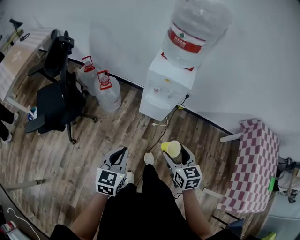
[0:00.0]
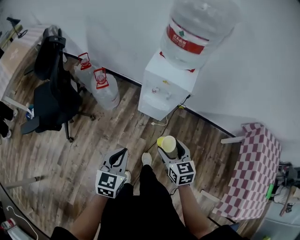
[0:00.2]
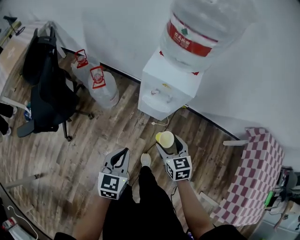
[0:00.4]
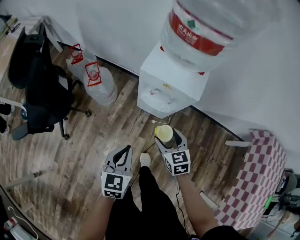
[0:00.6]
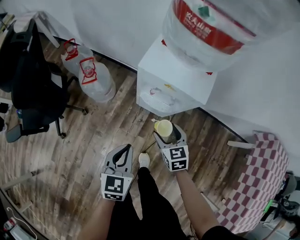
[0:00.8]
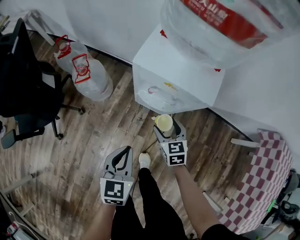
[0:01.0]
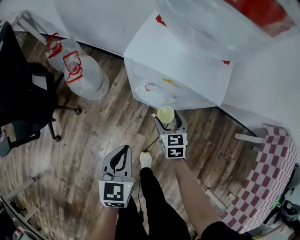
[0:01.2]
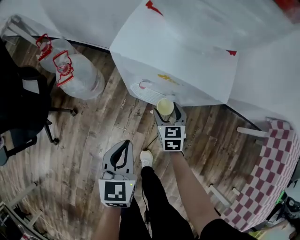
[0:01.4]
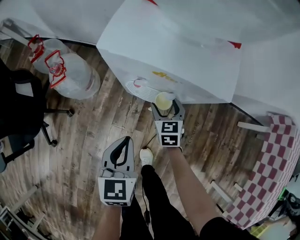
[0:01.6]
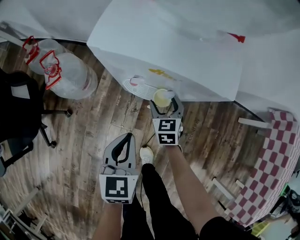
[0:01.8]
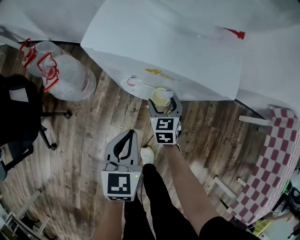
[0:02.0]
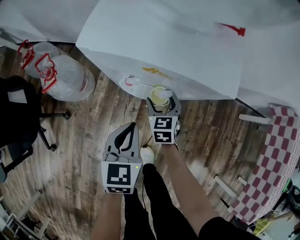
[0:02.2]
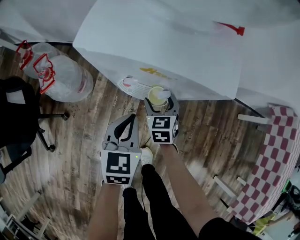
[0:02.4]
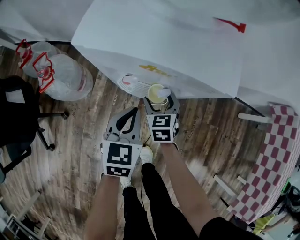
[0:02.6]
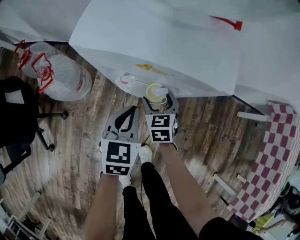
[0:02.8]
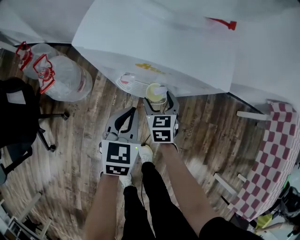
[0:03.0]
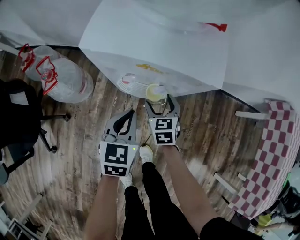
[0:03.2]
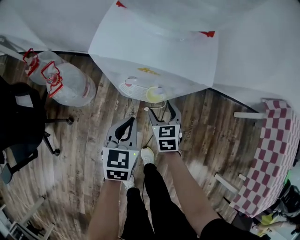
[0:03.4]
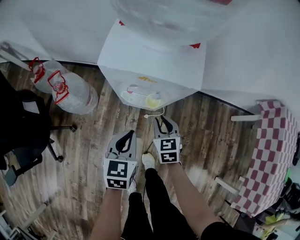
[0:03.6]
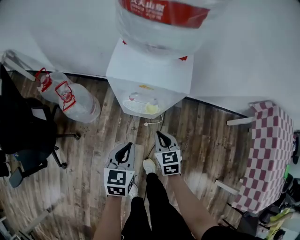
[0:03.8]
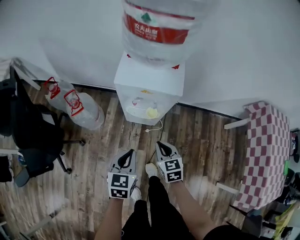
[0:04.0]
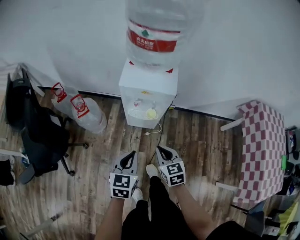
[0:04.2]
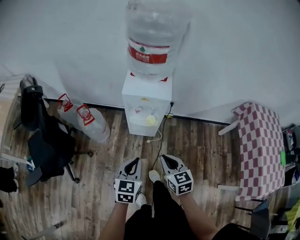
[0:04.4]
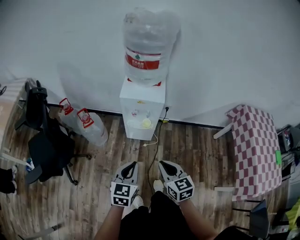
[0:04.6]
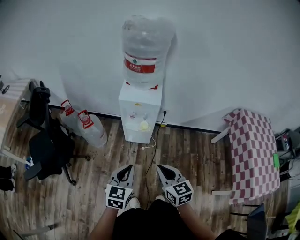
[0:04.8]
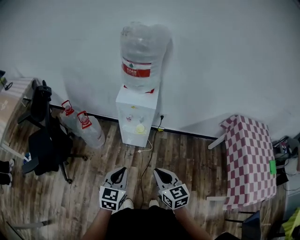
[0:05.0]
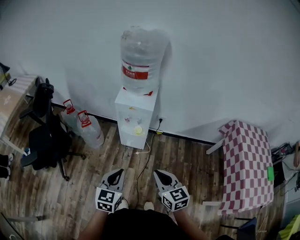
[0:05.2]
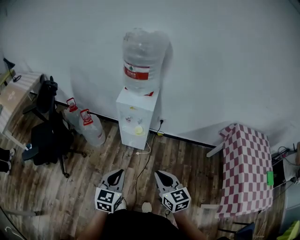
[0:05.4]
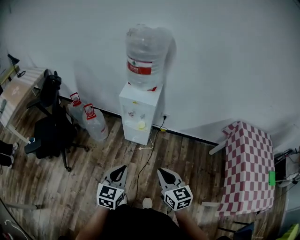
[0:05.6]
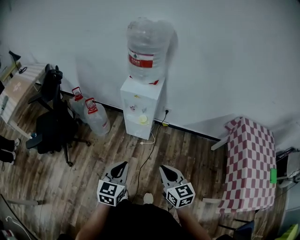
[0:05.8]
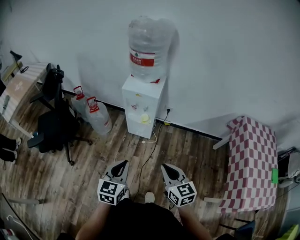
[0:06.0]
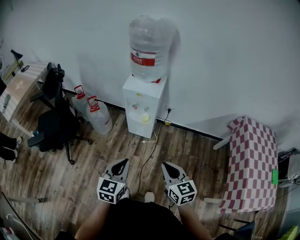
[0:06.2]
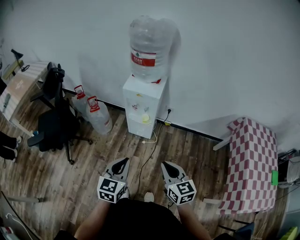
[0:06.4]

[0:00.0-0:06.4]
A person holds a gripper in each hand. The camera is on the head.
0:00.0 to 0:01.6: The left gripper heads forward, downward and to the right, covering approximately 40 cm; the right gripper moves downward and forward, roughly 50 cm.
0:01.6 to 0:03.2: The left gripper shifts about 5 cm forward.
0:03.2 to 0:04.8: The right gripper goes about 60 cm upward and backward, changes its angle by roughly 20 degrees, and closes its fingers. Meanwhile the left gripper travels backward and upward by about 50 cm.
0:04.8 to 0:06.4: The left gripper is displaced backward and to the right by about 10 cm. The right gripper travels to the right and backward by about 10 cm.

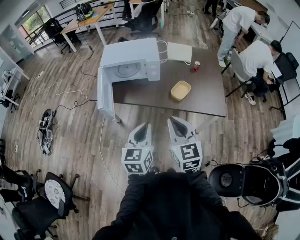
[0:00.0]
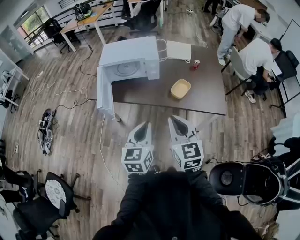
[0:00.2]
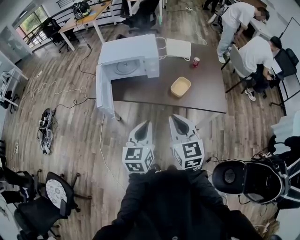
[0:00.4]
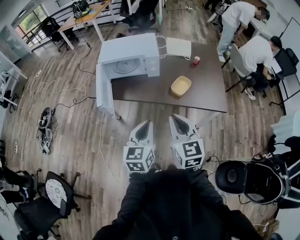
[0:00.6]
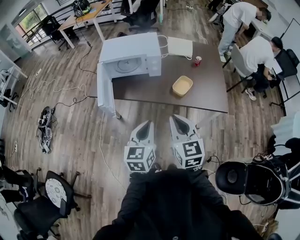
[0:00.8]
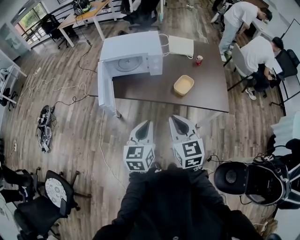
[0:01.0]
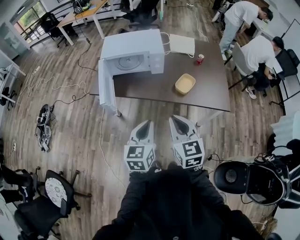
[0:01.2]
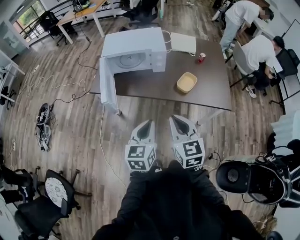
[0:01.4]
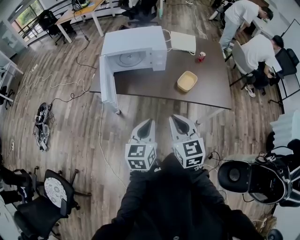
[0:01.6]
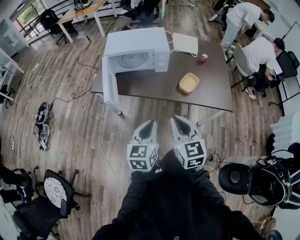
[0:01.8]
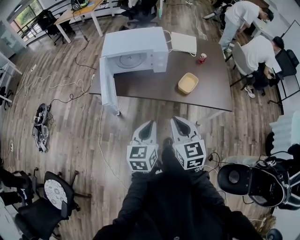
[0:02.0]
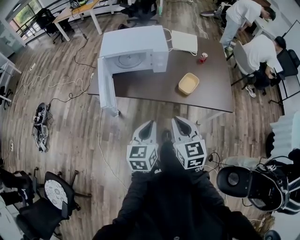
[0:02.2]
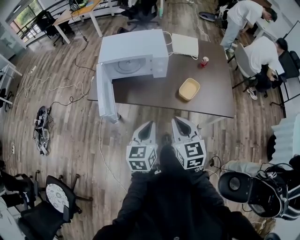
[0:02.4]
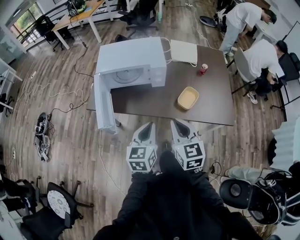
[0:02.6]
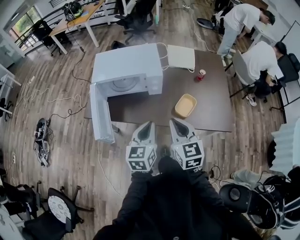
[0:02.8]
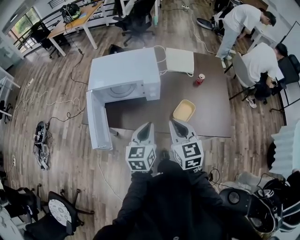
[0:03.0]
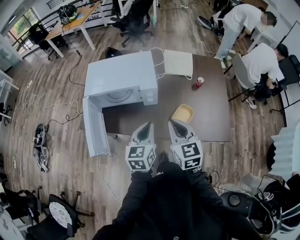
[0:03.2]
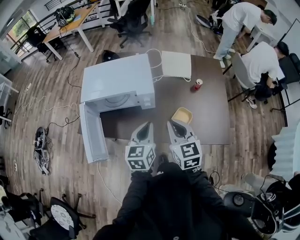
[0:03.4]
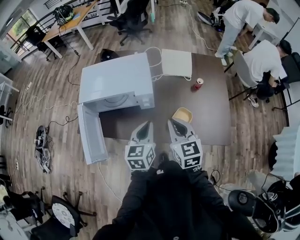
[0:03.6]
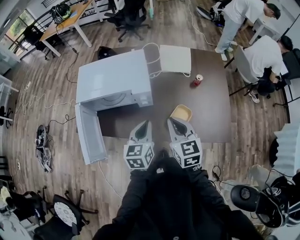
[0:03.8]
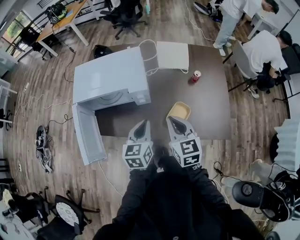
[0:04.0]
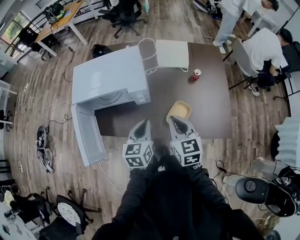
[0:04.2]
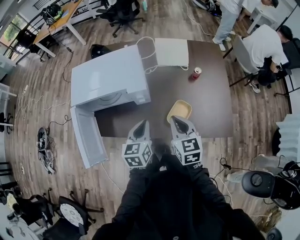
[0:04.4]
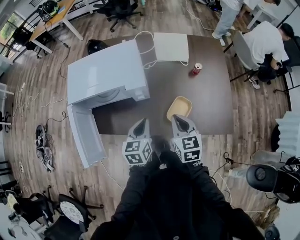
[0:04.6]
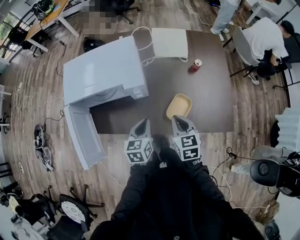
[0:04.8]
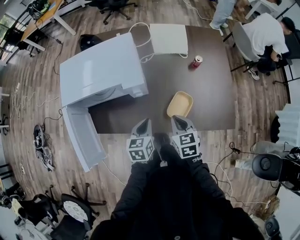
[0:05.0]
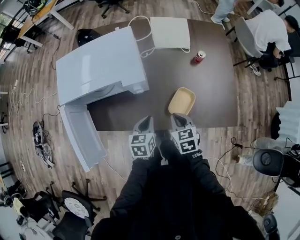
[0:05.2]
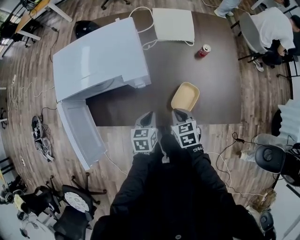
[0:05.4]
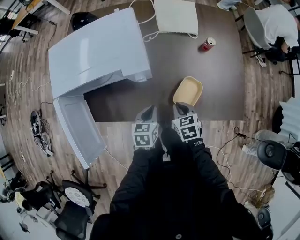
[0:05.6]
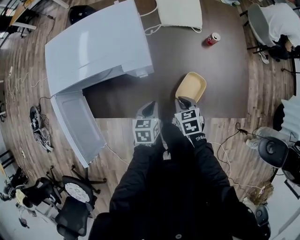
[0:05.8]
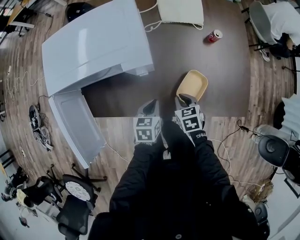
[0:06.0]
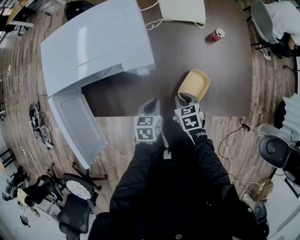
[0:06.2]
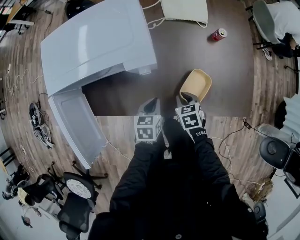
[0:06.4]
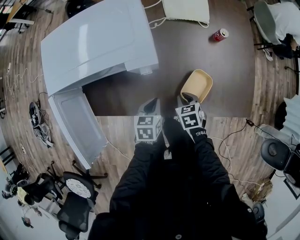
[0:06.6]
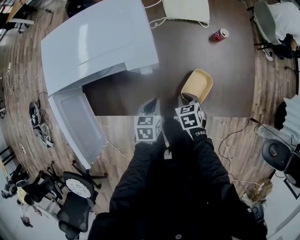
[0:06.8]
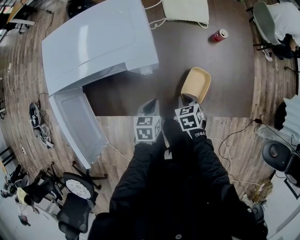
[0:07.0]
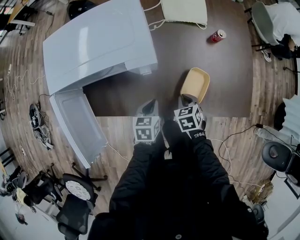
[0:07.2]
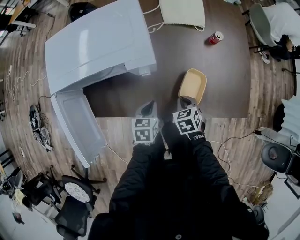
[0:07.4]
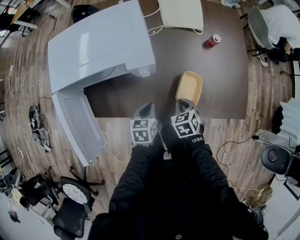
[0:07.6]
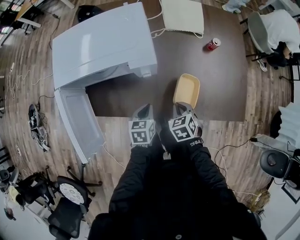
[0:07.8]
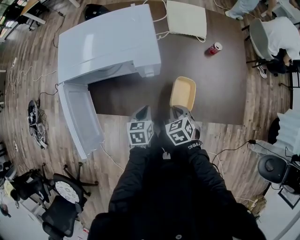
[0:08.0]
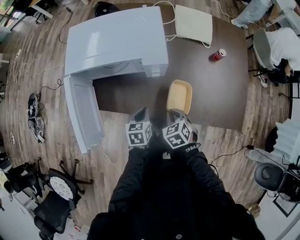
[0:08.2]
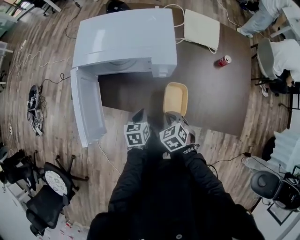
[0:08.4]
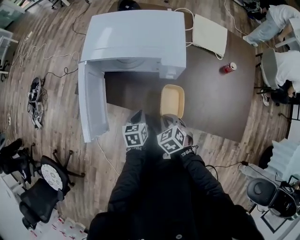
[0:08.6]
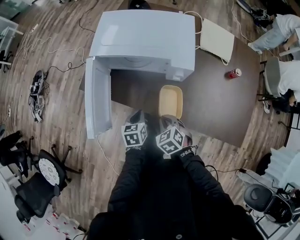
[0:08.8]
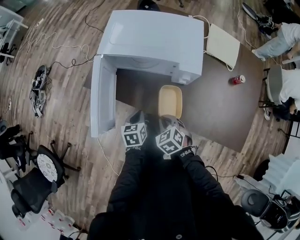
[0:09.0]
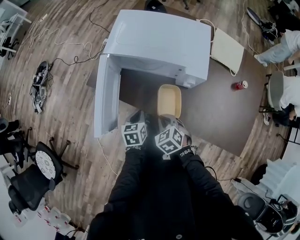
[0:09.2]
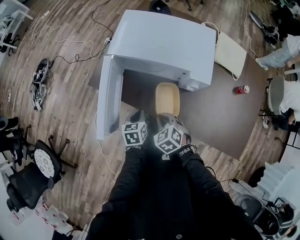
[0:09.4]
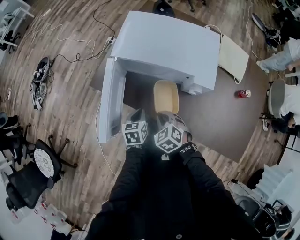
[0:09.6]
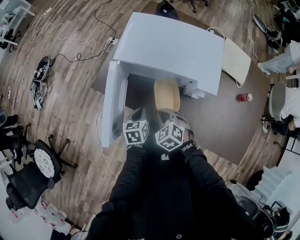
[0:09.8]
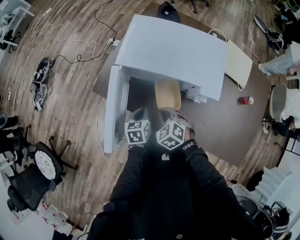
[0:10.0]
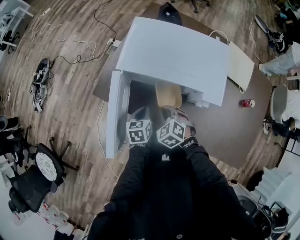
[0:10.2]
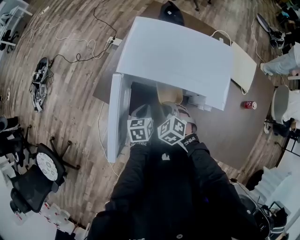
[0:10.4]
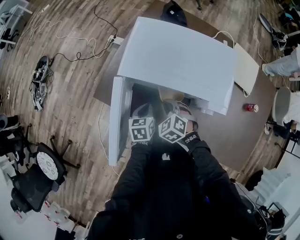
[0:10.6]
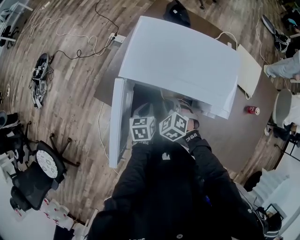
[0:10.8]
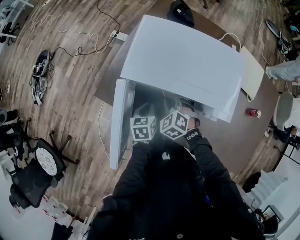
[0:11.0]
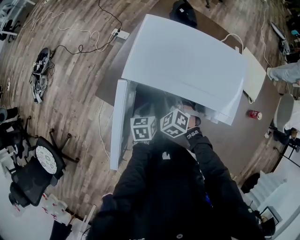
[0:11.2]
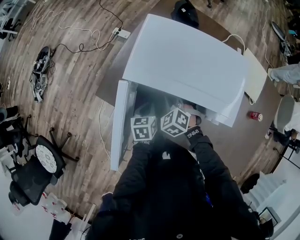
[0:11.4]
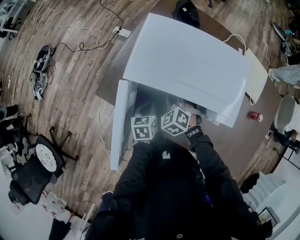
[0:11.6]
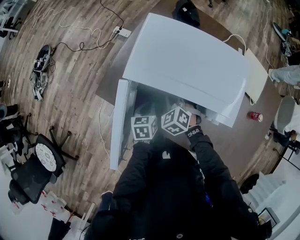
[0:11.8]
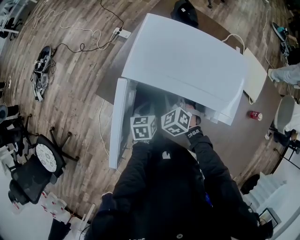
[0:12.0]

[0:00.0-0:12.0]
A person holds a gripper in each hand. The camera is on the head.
0:00.0 to 0:01.6: The right gripper travels to the left by roughly 5 cm. Meanwhile the left gripper changes place by some 5 cm.
0:01.6 to 0:03.0: Both grippers travel together forward, approximately 25 cm.
0:03.0 to 0:04.4: The right gripper goes roughly 15 cm forward, to the right and downward. Meanwhile the left gripper shifts about 10 cm forward and downward.
0:04.4 to 0:06.0: Both grippers travel together downward, some 20 cm. The right gripper angles its fingers downward, by some 30 degrees, while the left gripper swivels approximately 20 degrees.
0:06.0 to 0:07.6: The grippers make only small movements.
0:07.6 to 0:09.0: The left gripper shifts by about 20 cm, and changes its angle by roughly 30 degrees, while the right gripper moves some 20 cm, and turns by about 40 degrees.
0:09.0 to 0:10.4: Both grippers move forward, approximately 15 cm.
0:10.4 to 0:12.0: The right gripper heads forward, covering roughly 10 cm.

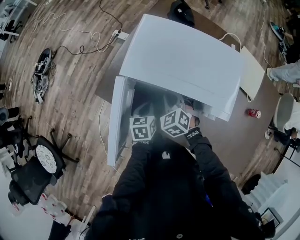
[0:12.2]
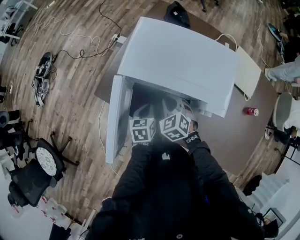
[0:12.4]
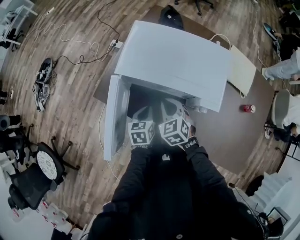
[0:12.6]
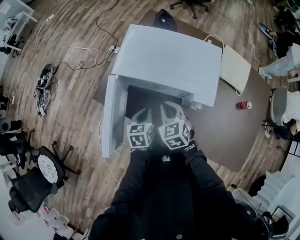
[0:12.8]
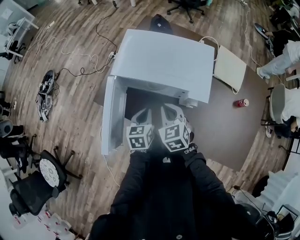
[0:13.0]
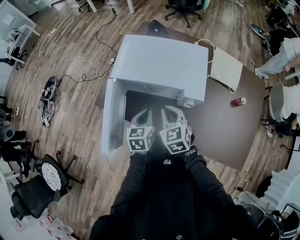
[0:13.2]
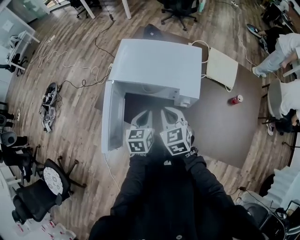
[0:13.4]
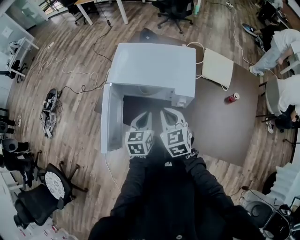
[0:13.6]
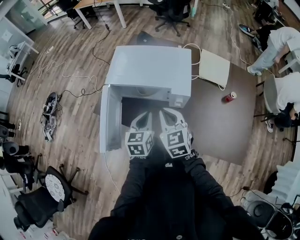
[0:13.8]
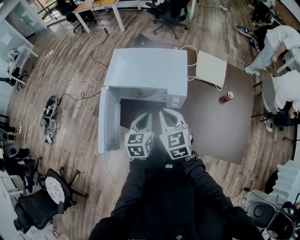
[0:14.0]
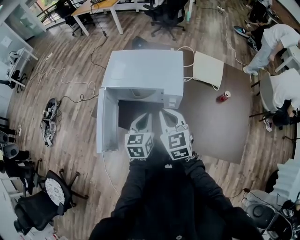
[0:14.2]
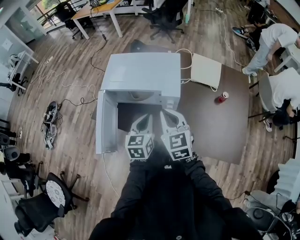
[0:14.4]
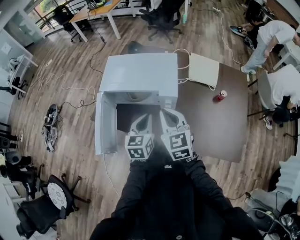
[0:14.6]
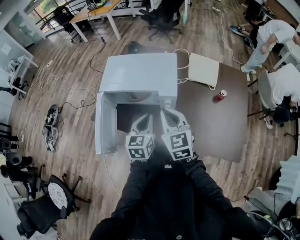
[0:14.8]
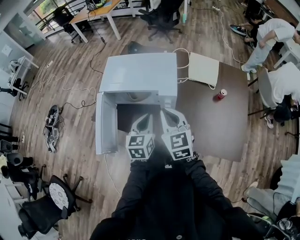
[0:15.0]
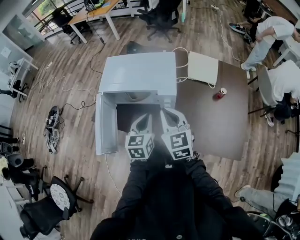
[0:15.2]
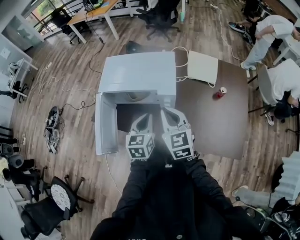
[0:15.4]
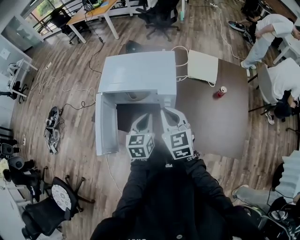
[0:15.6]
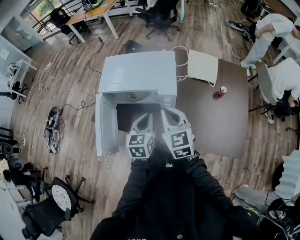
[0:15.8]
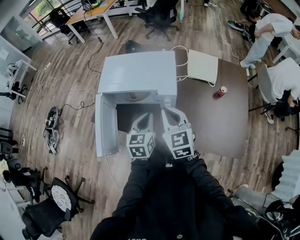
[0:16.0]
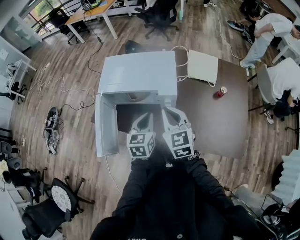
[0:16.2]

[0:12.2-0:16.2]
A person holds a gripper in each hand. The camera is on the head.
0:12.2 to 0:13.6: The right gripper travels upward, backward and to the right by roughly 25 cm, and rotates some 30 degrees, while the left gripper goes roughly 20 cm upward, to the right and backward, and turns by approximately 20 degrees.
0:13.6 to 0:14.8: The right gripper goes approximately 10 cm upward and to the right. Meanwhile the left gripper travels to the right and upward by roughly 10 cm.
0:14.8 to 0:16.2: There are only small adjustments of the grippers.

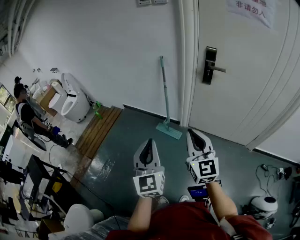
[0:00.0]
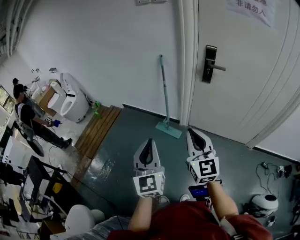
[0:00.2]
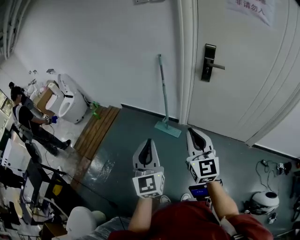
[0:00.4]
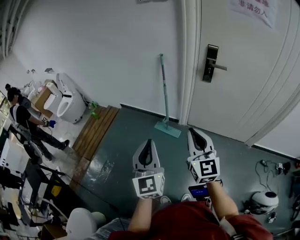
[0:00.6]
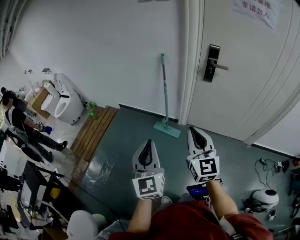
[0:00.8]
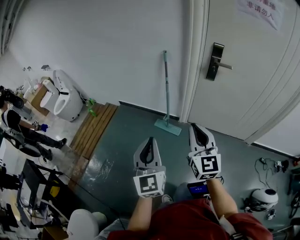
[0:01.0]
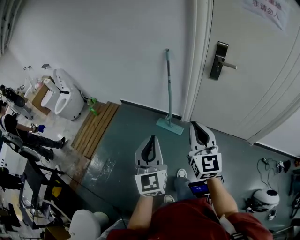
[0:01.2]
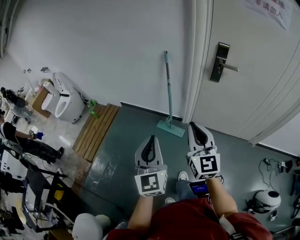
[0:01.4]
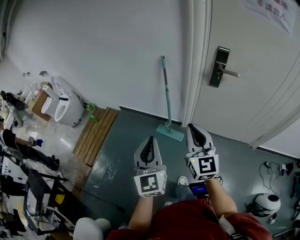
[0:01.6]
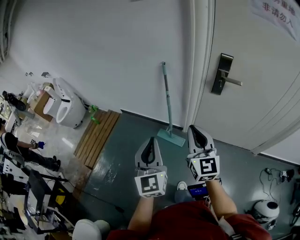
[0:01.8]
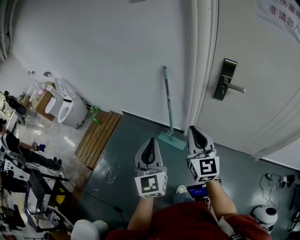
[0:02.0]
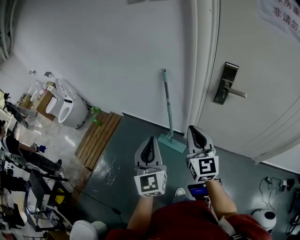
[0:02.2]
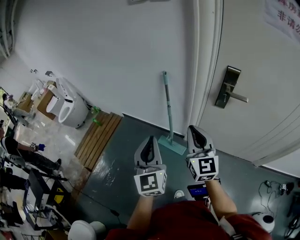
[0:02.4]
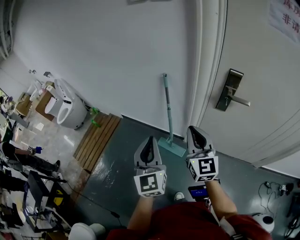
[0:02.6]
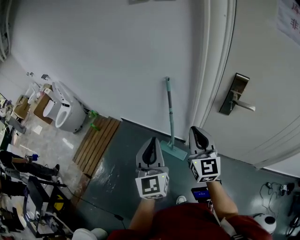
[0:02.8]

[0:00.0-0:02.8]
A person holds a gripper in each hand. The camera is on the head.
0:00.0 to 0:01.4: The grippers both shift forward and to the left by roughly 15 cm.
0:01.4 to 0:02.8: Both grippers move forward, roughly 25 cm.
